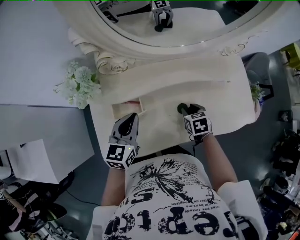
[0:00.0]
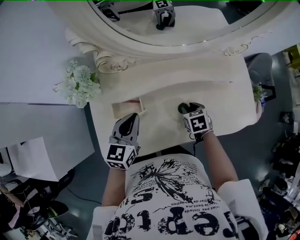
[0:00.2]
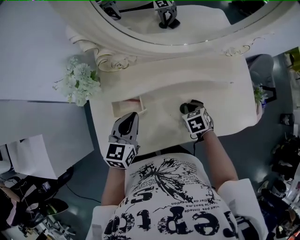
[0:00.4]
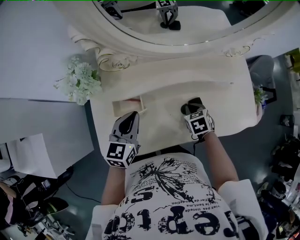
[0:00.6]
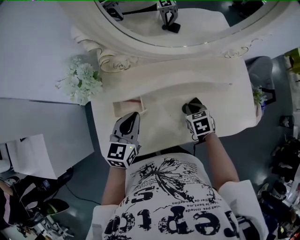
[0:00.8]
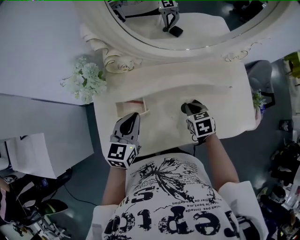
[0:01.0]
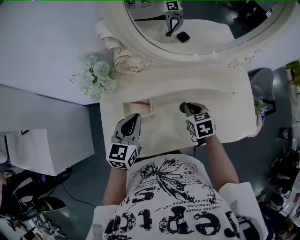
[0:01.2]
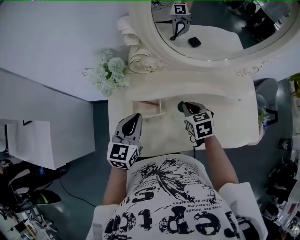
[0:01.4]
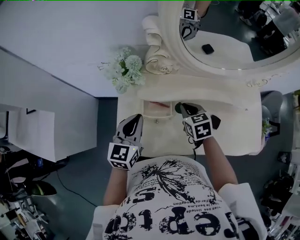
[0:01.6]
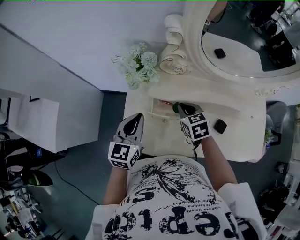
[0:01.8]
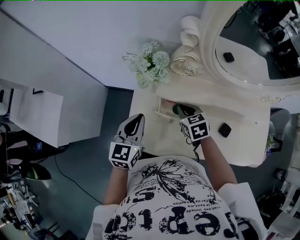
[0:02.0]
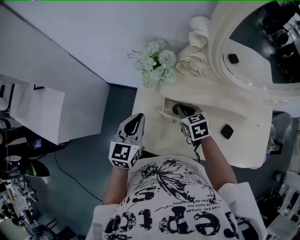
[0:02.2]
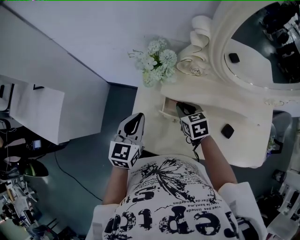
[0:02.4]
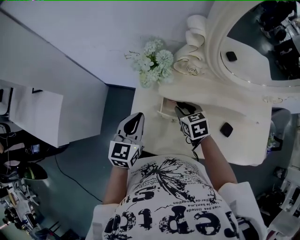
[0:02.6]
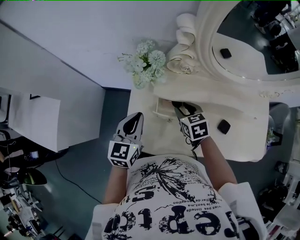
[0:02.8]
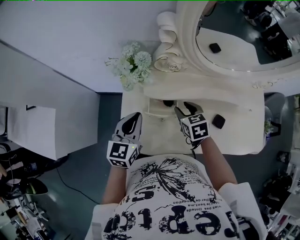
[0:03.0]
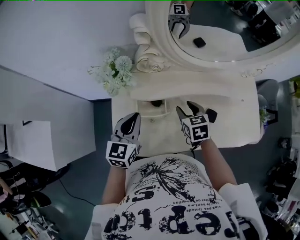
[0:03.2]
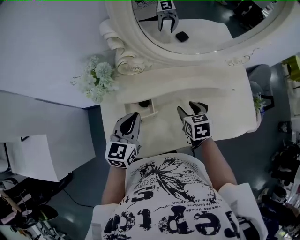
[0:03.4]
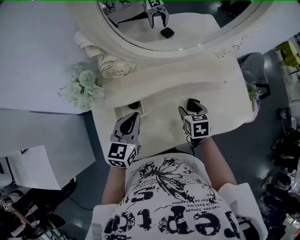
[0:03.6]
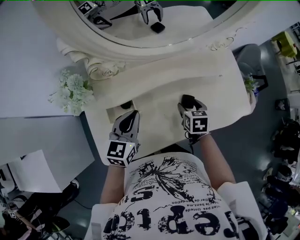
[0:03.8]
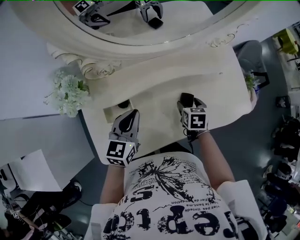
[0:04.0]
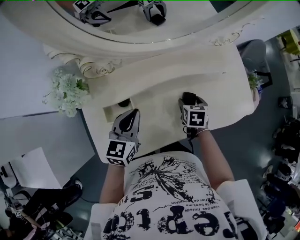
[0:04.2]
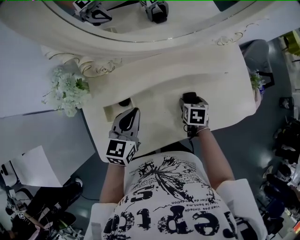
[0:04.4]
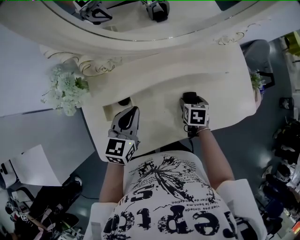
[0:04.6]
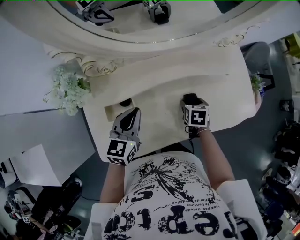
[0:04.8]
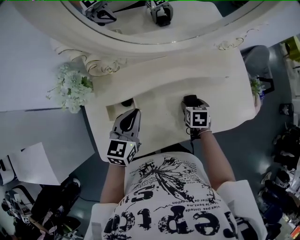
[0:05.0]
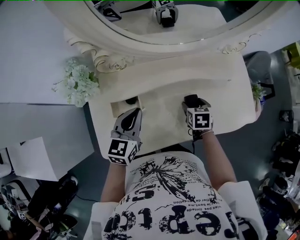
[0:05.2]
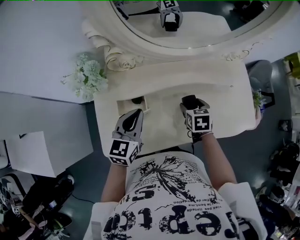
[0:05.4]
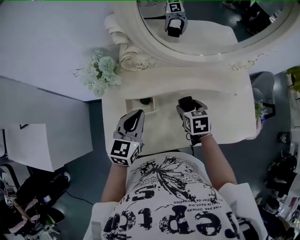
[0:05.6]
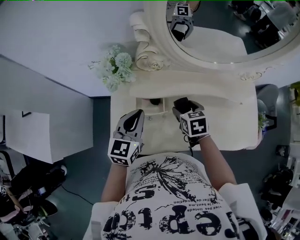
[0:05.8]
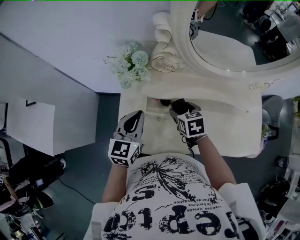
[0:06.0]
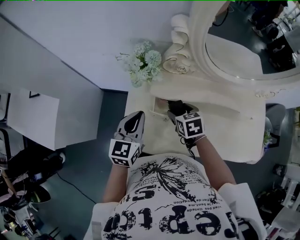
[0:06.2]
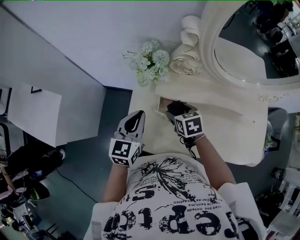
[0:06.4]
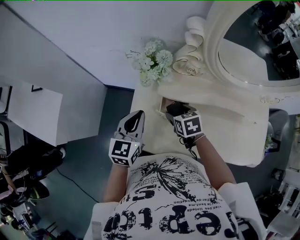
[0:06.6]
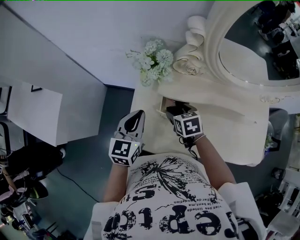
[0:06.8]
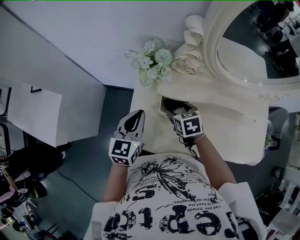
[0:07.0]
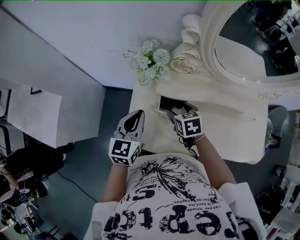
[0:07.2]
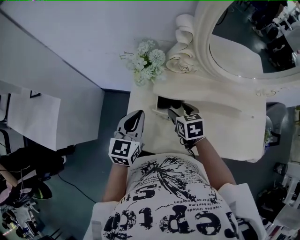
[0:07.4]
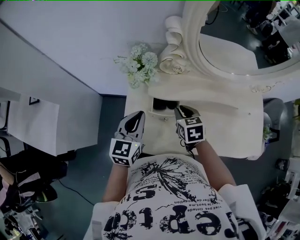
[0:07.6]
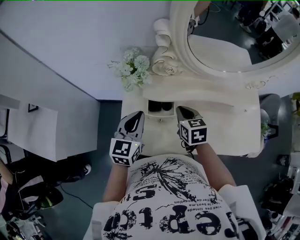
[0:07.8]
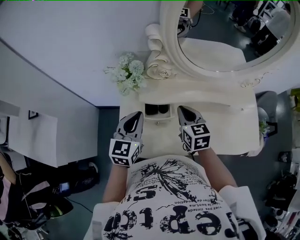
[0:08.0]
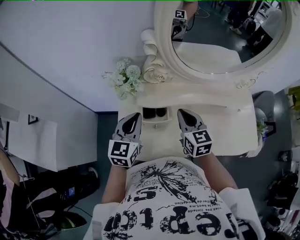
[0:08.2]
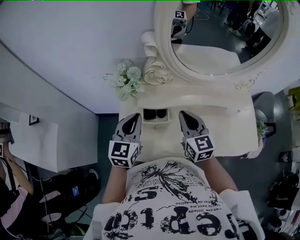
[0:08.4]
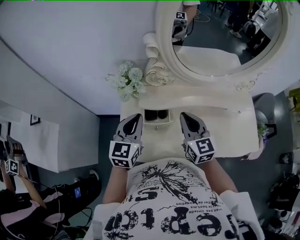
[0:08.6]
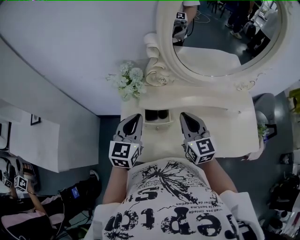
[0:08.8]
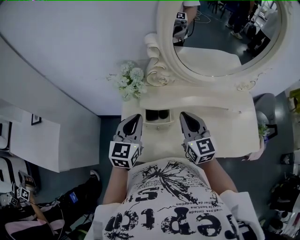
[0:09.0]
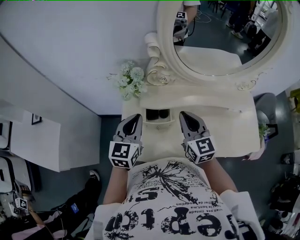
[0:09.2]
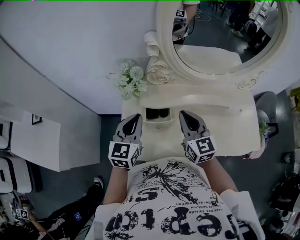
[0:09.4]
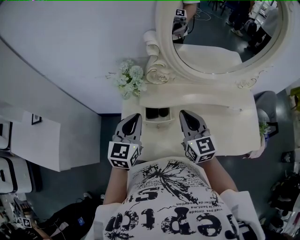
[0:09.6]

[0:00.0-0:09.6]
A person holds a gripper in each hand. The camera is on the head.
0:00.0 to 0:01.6: The left gripper travels to the left by about 10 cm. Meanwhile the right gripper is displaced to the left and upward by some 20 cm, swivels approximately 20 degrees, and closes.
0:01.6 to 0:03.2: The left gripper reaches some 10 cm to the left, then returns. Meanwhile the right gripper reaches some 10 cm to the left, then returns, and opens its fingers.
0:03.2 to 0:04.8: The left gripper goes some 15 cm to the right and forward, while the right gripper shifts some 25 cm to the right and downward, swivels roughly 30 degrees, and opens.
0:04.8 to 0:06.4: The left gripper changes place by roughly 25 cm, and swivels approximately 30 degrees. The right gripper moves roughly 35 cm, and rotates about 40 degrees.
0:06.4 to 0:08.0: The right gripper shifts approximately 15 cm upward and to the right, swivels approximately 30 degrees, and closes its fingers, while the left gripper heads to the right, covering some 5 cm.
0:08.0 to 0:09.6: The right gripper heads upward, covering about 5 cm, and rotates roughly 20 degrees.

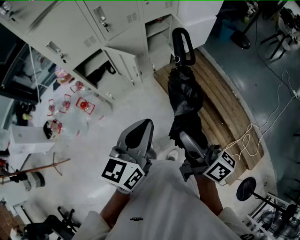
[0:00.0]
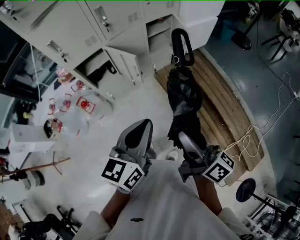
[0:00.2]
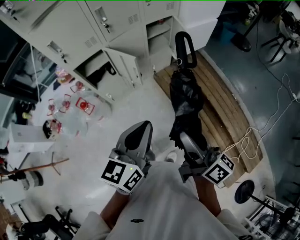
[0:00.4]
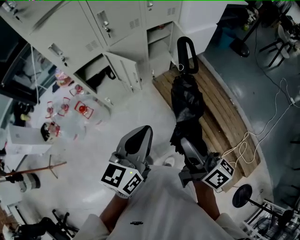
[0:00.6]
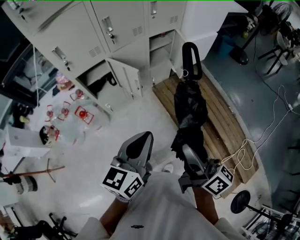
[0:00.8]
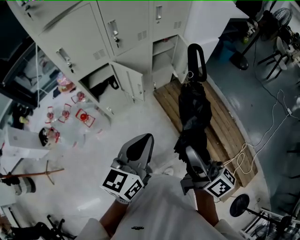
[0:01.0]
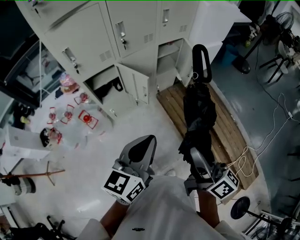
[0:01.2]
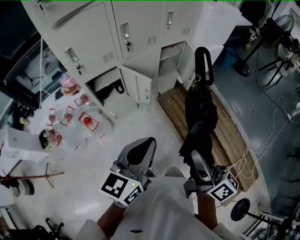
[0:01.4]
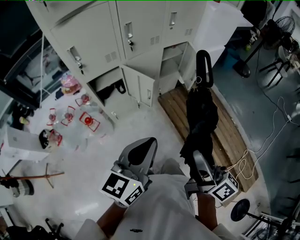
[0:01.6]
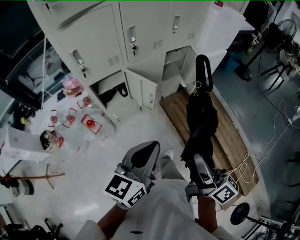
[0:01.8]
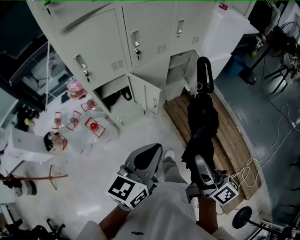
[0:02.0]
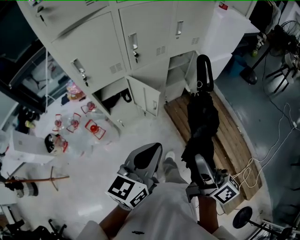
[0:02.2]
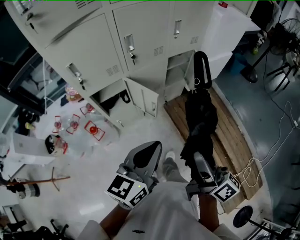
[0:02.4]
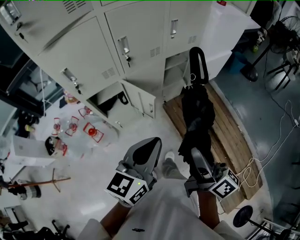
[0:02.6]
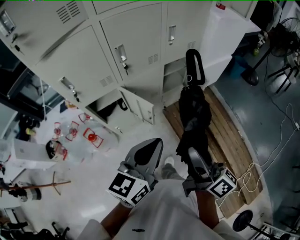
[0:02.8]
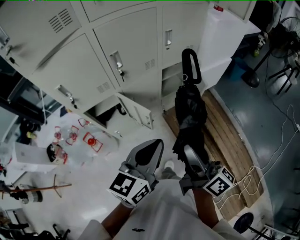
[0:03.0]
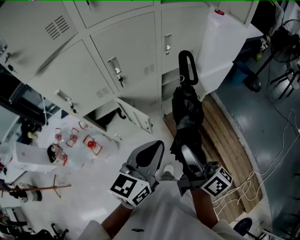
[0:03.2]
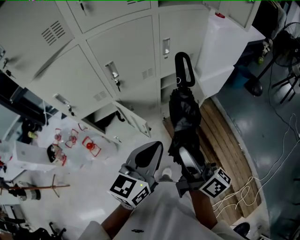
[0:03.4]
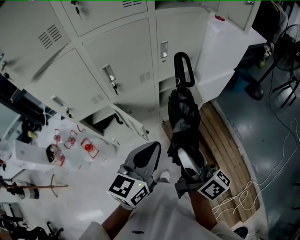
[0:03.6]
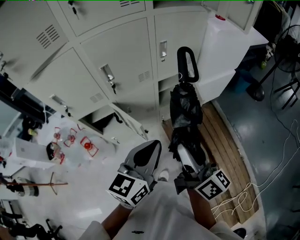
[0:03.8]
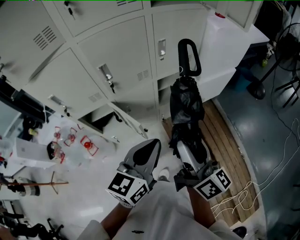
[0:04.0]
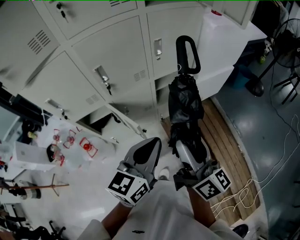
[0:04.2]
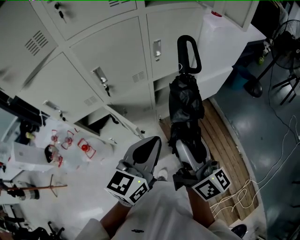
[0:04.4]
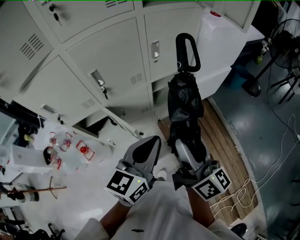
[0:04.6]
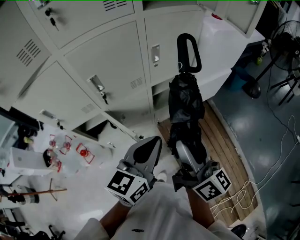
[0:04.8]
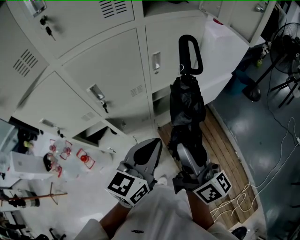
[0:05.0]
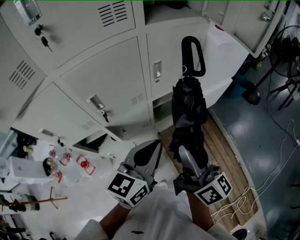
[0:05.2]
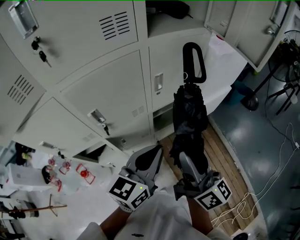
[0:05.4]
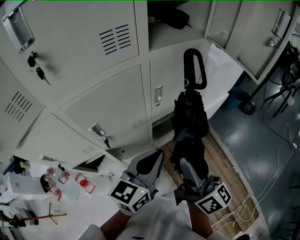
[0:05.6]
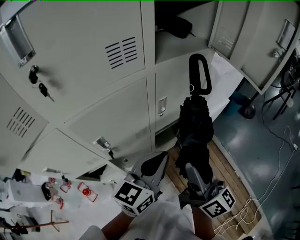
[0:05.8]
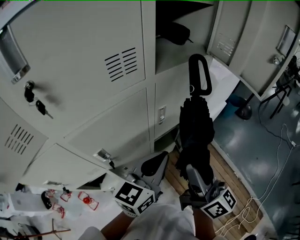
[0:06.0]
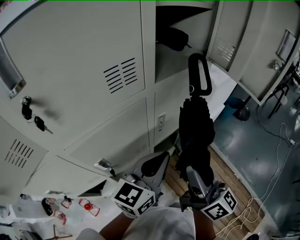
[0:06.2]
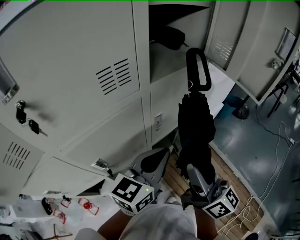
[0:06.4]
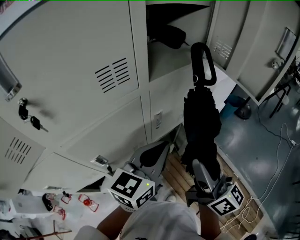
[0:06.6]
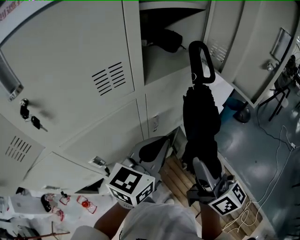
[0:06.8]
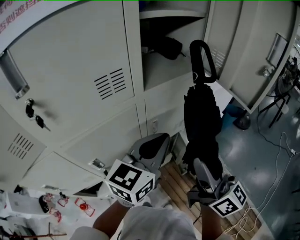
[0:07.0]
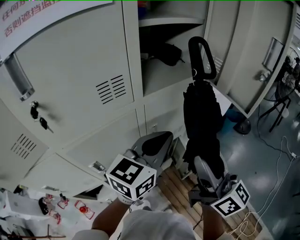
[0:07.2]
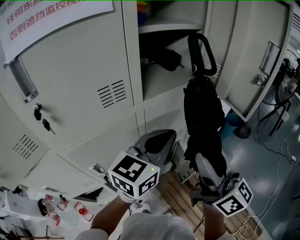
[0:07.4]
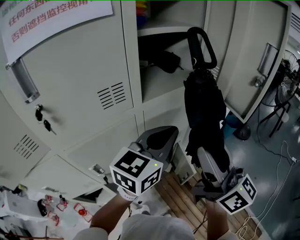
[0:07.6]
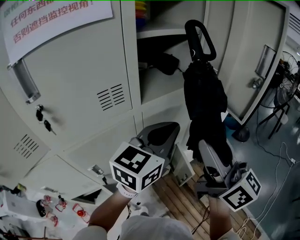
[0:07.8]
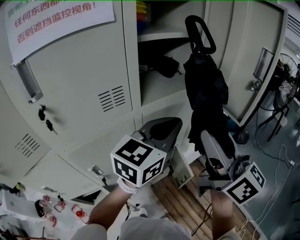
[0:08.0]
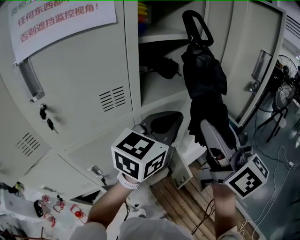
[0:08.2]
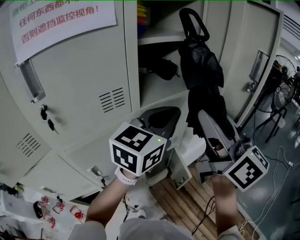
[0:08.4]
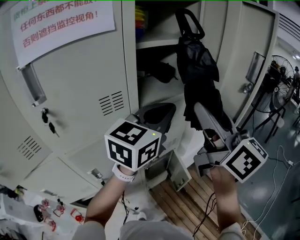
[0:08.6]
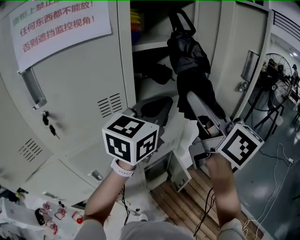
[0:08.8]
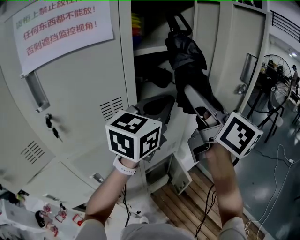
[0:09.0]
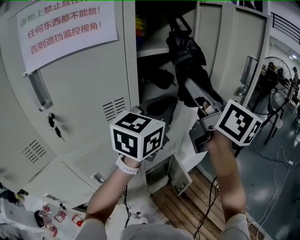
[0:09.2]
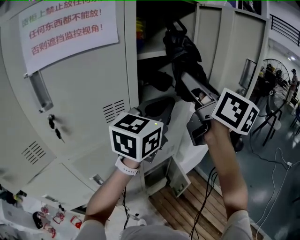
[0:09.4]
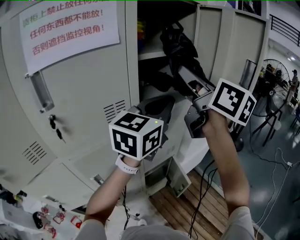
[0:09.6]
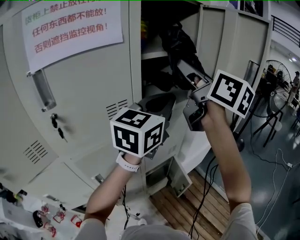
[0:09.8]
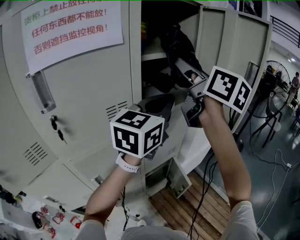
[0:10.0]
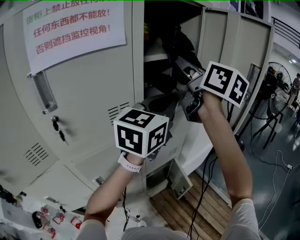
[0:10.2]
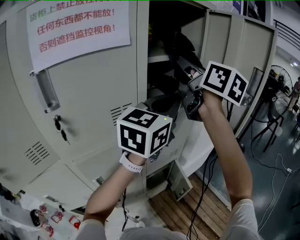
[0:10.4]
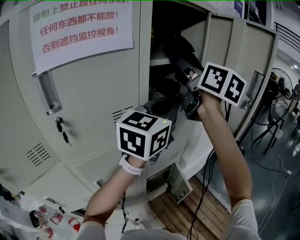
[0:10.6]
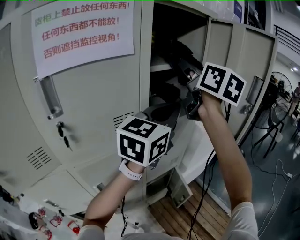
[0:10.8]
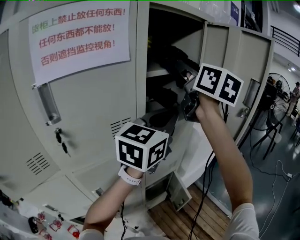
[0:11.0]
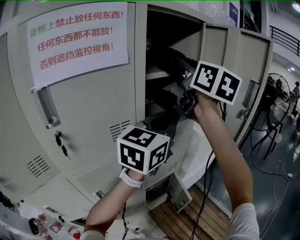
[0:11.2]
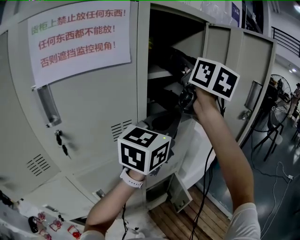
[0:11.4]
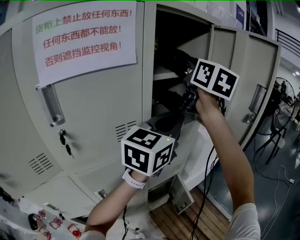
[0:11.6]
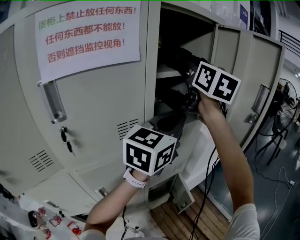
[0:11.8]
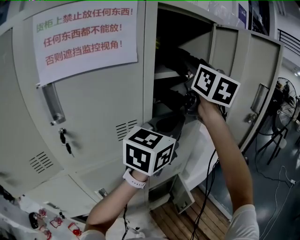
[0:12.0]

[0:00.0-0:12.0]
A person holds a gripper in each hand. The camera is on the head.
0:00.0 to 0:01.6: The left gripper heads to the left, covering about 10 cm. Meanwhile the right gripper is displaced to the left by some 5 cm.
0:01.6 to 0:03.0: Both grippers travel together forward, some 20 cm.
0:03.0 to 0:04.4: Both grippers move forward and to the right, roughly 10 cm.
0:04.4 to 0:06.0: The two grippers go roughly 20 cm forward.
0:06.0 to 0:07.6: The left gripper shifts some 15 cm upward, forward and to the right. Meanwhile the right gripper heads upward and forward, covering some 15 cm.
0:07.6 to 0:09.0: The left gripper travels upward by some 10 cm. Meanwhile the right gripper moves upward and forward, roughly 15 cm.
0:09.0 to 0:10.4: The right gripper heads forward and upward, covering roughly 15 cm.
0:10.4 to 0:12.0: The right gripper heads upward, covering roughly 5 cm.

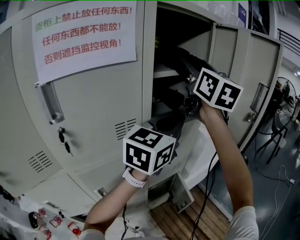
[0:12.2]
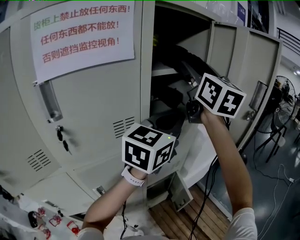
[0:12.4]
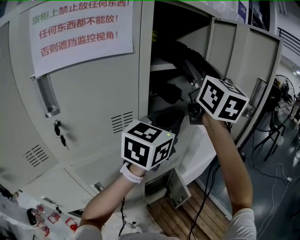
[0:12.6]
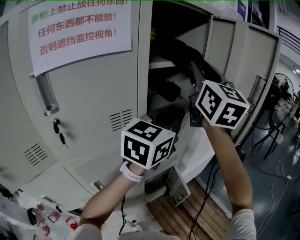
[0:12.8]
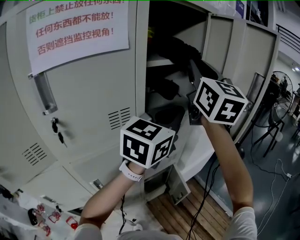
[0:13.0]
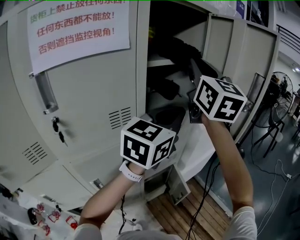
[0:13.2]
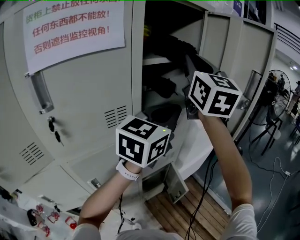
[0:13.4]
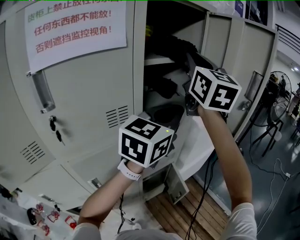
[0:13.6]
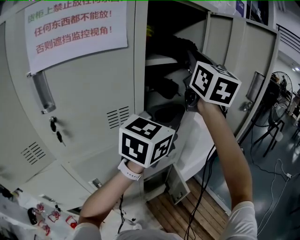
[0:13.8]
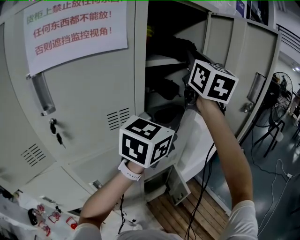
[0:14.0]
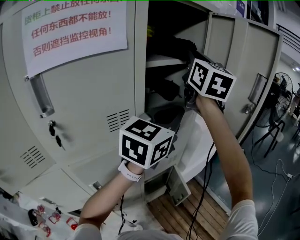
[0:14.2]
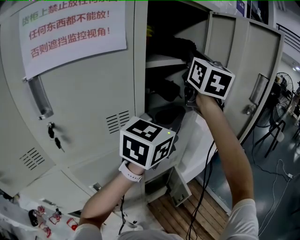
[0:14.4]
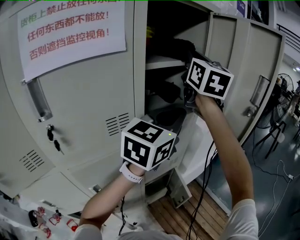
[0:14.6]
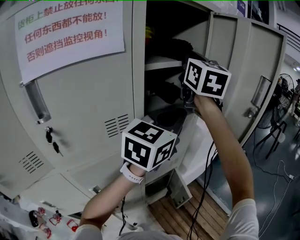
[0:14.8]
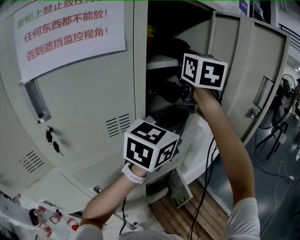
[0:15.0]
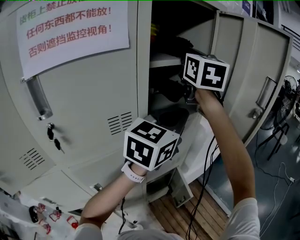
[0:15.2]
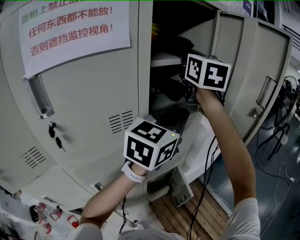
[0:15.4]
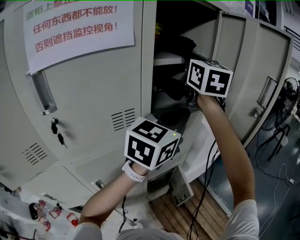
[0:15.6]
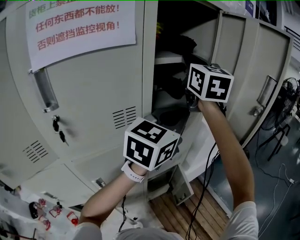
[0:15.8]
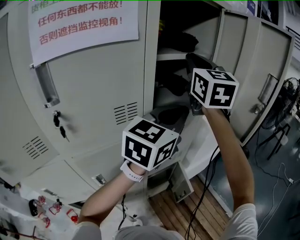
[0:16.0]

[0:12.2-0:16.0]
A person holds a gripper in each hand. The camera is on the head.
0:12.2 to 0:13.4: The right gripper closes.
0:13.4 to 0:14.8: The right gripper is displaced forward by roughly 10 cm.
0:14.8 to 0:16.0: The right gripper changes place by roughly 5 cm.
